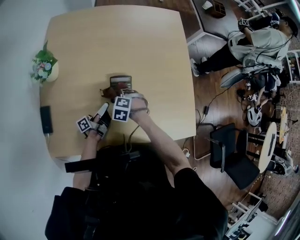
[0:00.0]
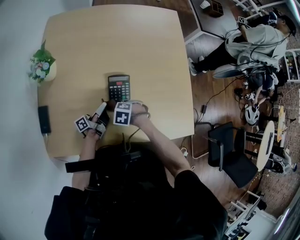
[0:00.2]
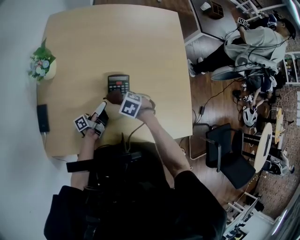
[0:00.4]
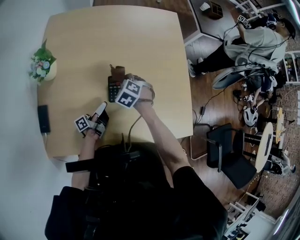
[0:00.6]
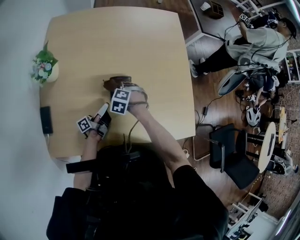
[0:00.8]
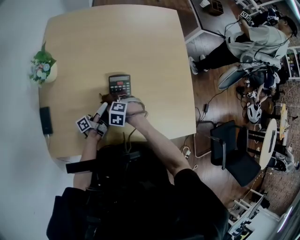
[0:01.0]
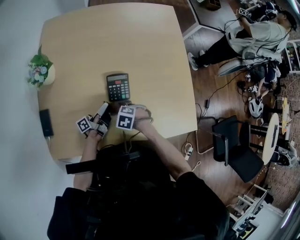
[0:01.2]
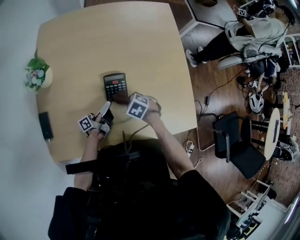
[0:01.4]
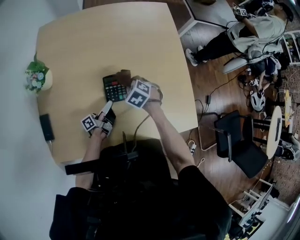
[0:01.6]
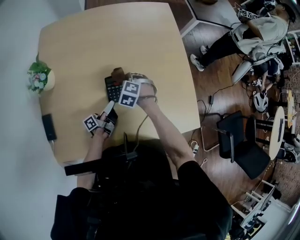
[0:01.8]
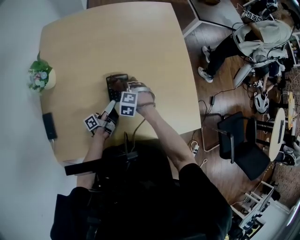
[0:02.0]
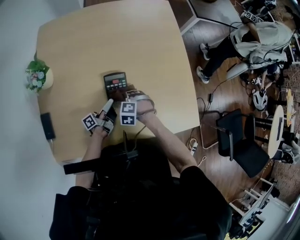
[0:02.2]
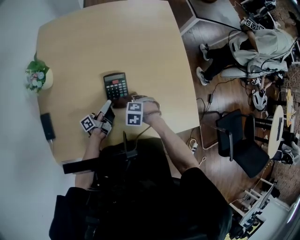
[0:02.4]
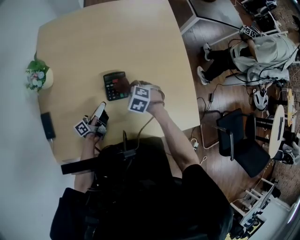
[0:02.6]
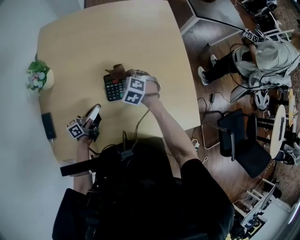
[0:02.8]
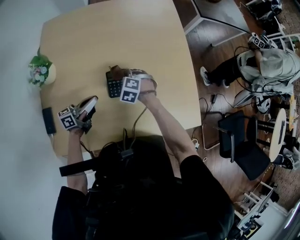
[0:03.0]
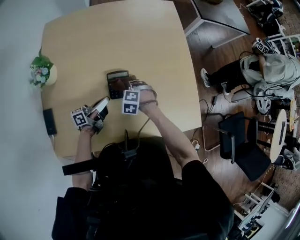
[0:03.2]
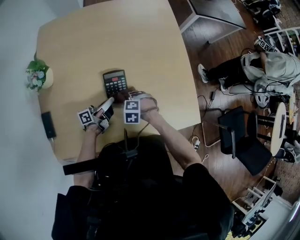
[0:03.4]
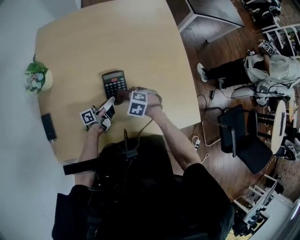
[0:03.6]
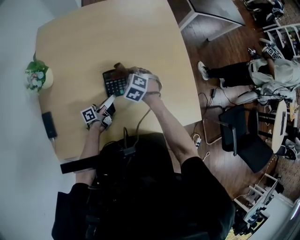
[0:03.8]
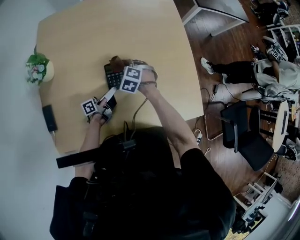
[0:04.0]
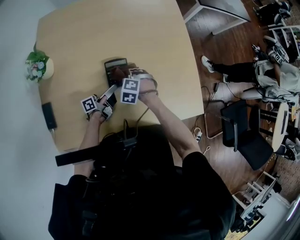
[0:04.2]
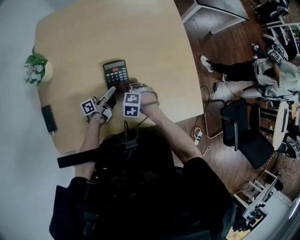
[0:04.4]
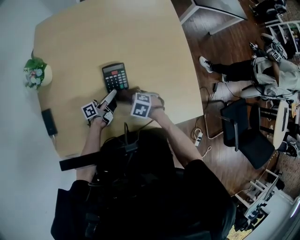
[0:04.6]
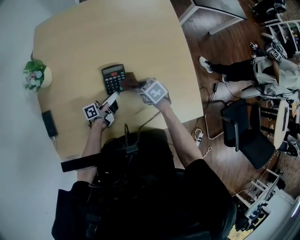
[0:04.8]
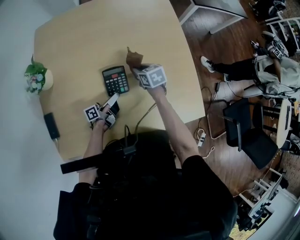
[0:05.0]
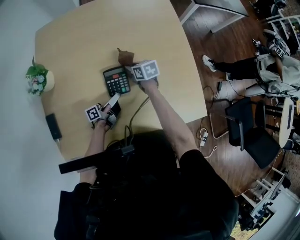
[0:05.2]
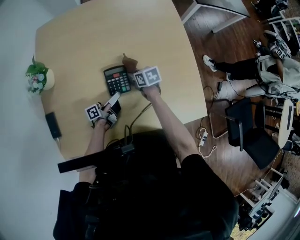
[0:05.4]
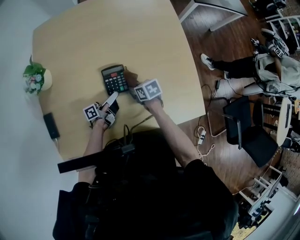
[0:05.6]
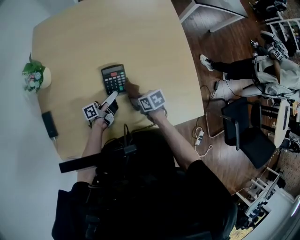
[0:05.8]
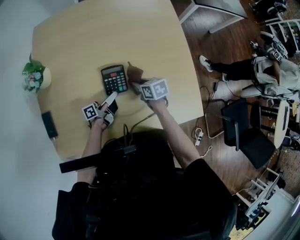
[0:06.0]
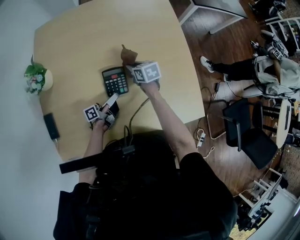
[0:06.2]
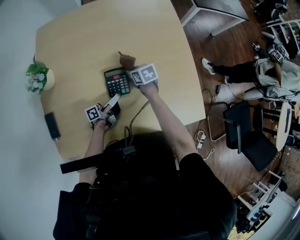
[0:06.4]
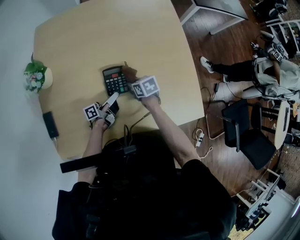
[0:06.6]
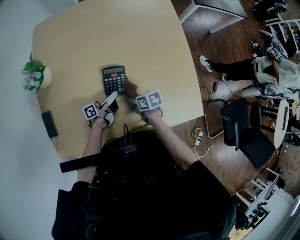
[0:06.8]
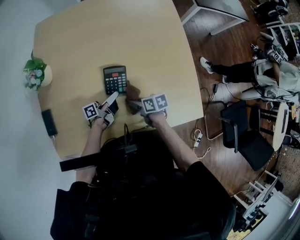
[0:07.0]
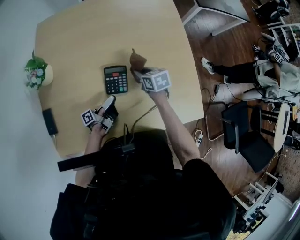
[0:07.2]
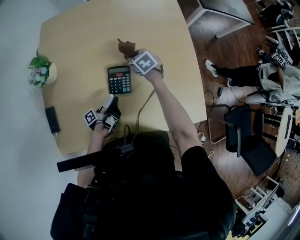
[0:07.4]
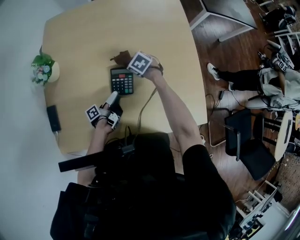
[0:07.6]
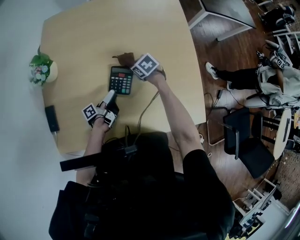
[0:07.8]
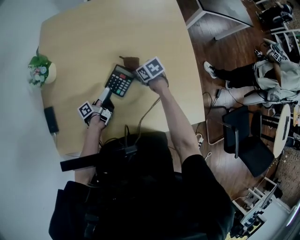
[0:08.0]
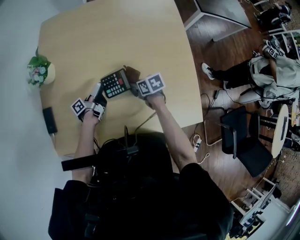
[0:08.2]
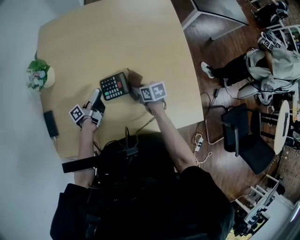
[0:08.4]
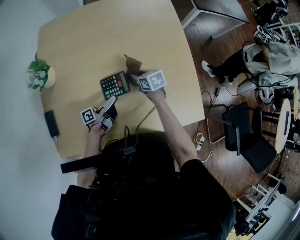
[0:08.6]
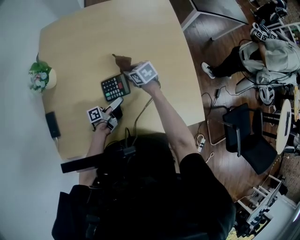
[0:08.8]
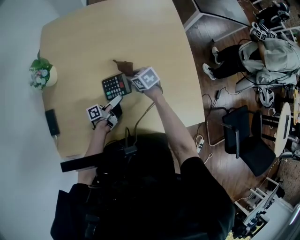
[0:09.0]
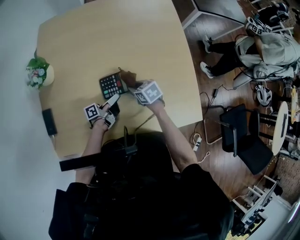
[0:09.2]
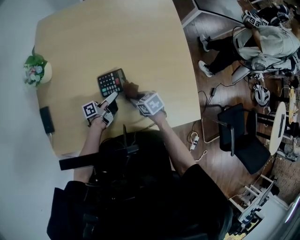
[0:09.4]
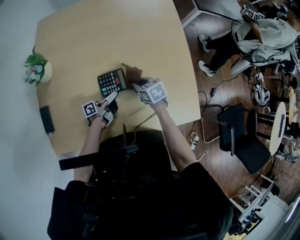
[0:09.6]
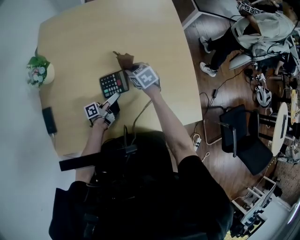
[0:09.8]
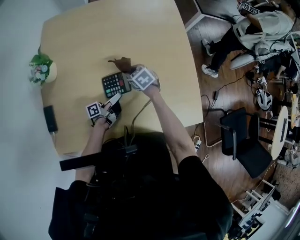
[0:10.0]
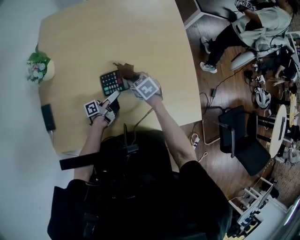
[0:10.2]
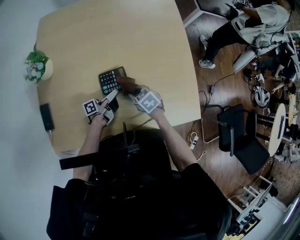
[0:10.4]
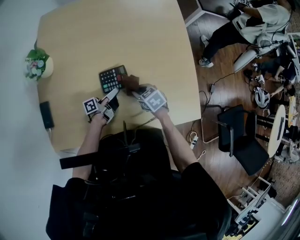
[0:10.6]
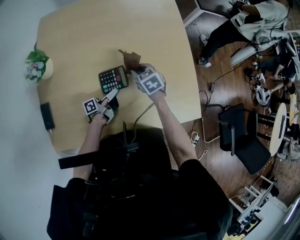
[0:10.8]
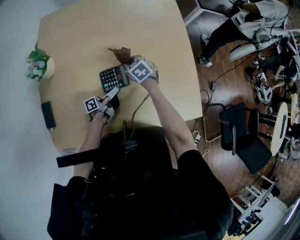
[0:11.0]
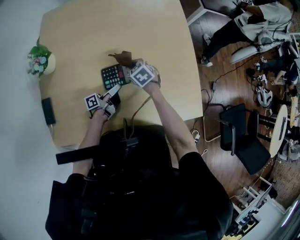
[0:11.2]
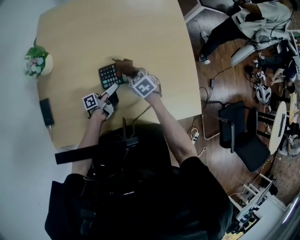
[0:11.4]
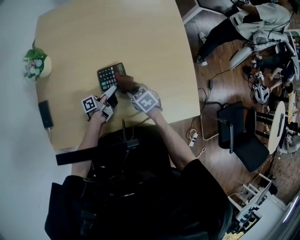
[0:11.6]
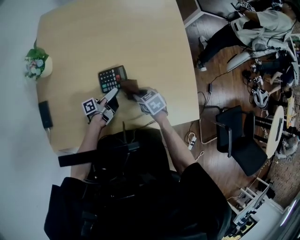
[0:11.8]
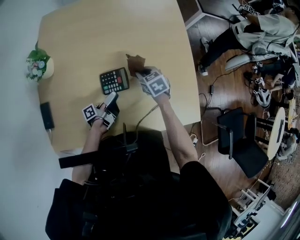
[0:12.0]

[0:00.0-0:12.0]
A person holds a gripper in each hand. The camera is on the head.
0:00.0 to 0:01.6: The right gripper moves up and down over approximately 10 cm, changing direction 2 times, and rotates roughly 30 degrees.
0:01.6 to 0:03.0: The right gripper rotates approximately 20 degrees.
0:03.0 to 0:04.4: The right gripper swings up and down, some 5 cm each way, with 2 reversals.
0:04.4 to 0:06.0: The right gripper rolls clockwise, seen from behind, by about 70 degrees.
0:06.0 to 0:07.6: The right gripper shifts by some 15 cm, and rotates some 40 degrees.
0:07.6 to 0:09.0: The right gripper turns by some 20 degrees.
0:09.0 to 0:10.4: The right gripper shifts by roughly 10 cm.
0:10.4 to 0:12.0: The right gripper swings up and down, roughly 5 cm each way, with 2 reversals.

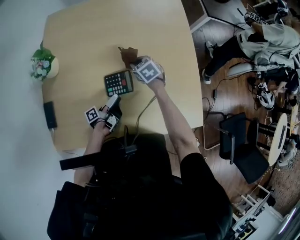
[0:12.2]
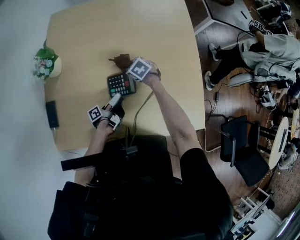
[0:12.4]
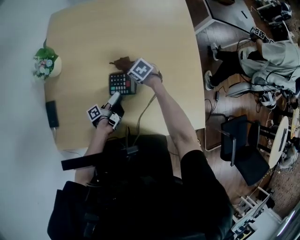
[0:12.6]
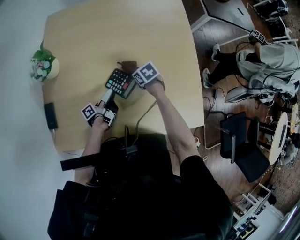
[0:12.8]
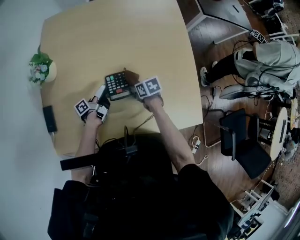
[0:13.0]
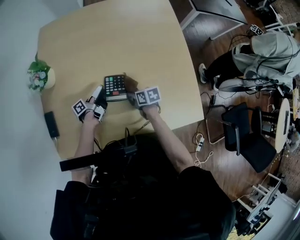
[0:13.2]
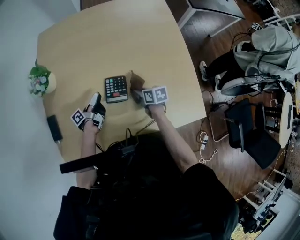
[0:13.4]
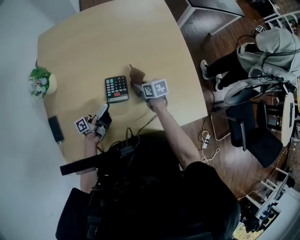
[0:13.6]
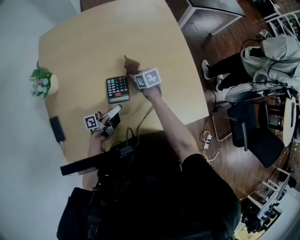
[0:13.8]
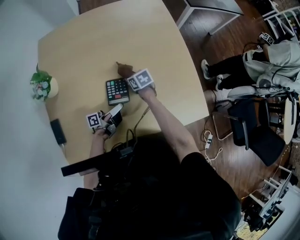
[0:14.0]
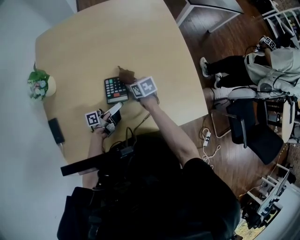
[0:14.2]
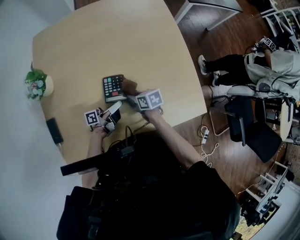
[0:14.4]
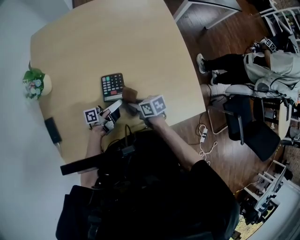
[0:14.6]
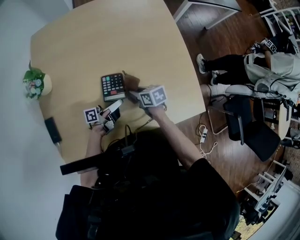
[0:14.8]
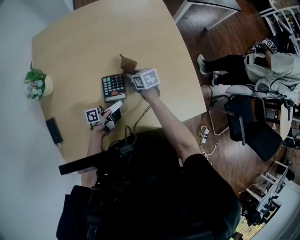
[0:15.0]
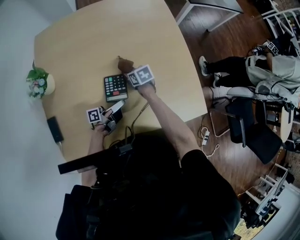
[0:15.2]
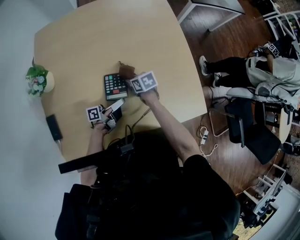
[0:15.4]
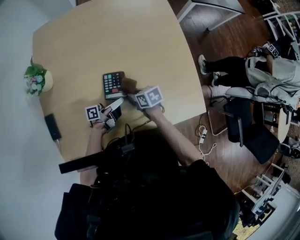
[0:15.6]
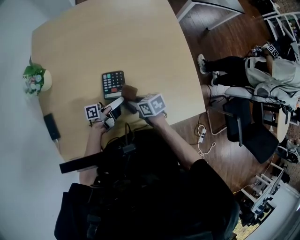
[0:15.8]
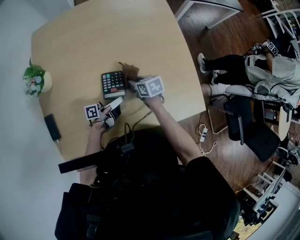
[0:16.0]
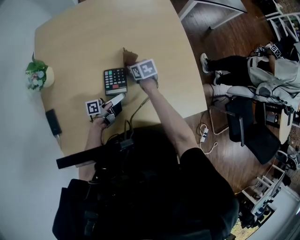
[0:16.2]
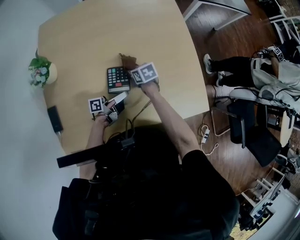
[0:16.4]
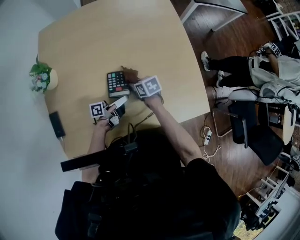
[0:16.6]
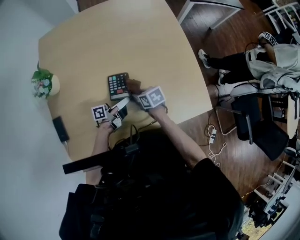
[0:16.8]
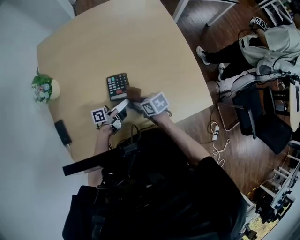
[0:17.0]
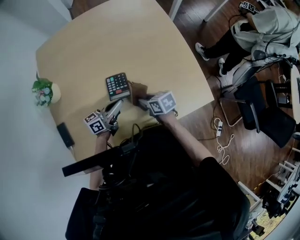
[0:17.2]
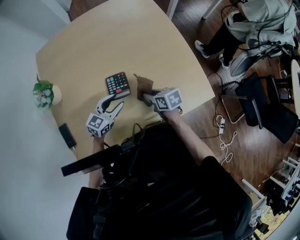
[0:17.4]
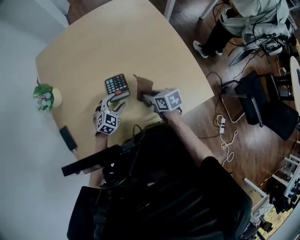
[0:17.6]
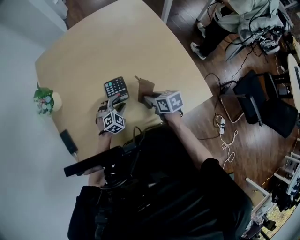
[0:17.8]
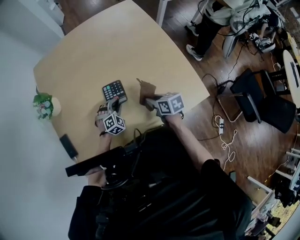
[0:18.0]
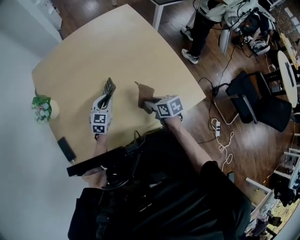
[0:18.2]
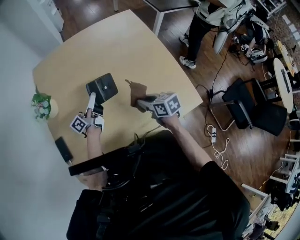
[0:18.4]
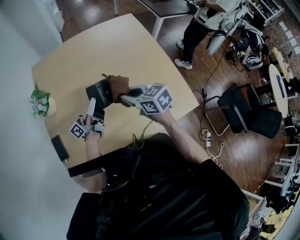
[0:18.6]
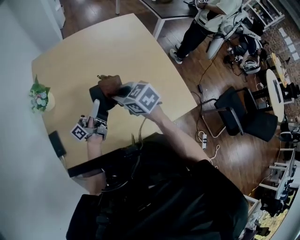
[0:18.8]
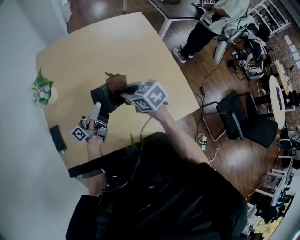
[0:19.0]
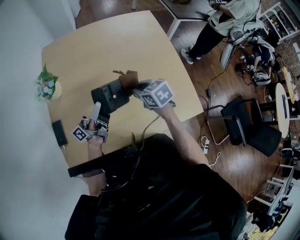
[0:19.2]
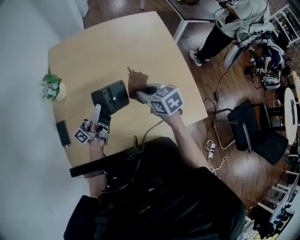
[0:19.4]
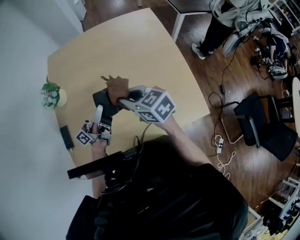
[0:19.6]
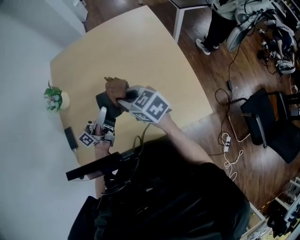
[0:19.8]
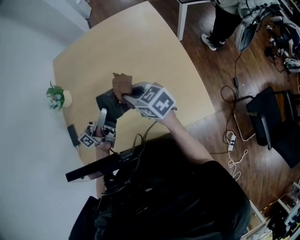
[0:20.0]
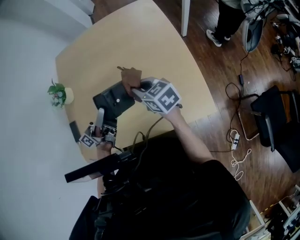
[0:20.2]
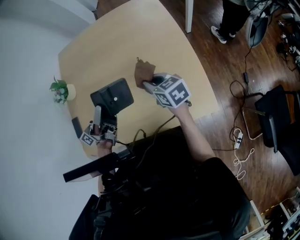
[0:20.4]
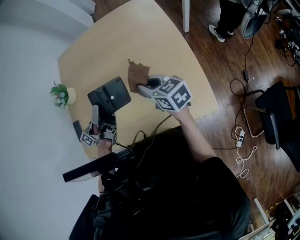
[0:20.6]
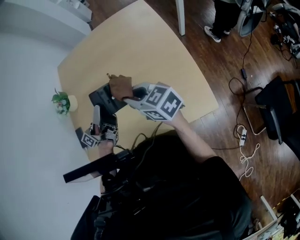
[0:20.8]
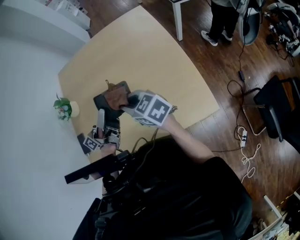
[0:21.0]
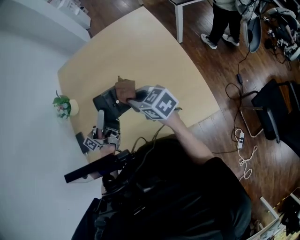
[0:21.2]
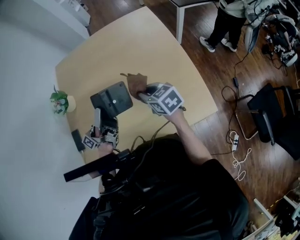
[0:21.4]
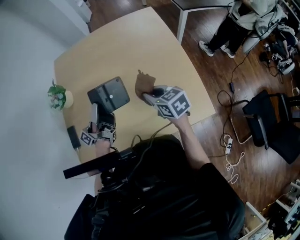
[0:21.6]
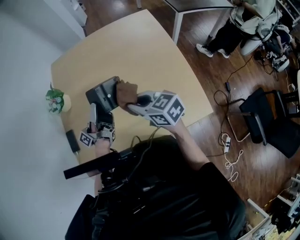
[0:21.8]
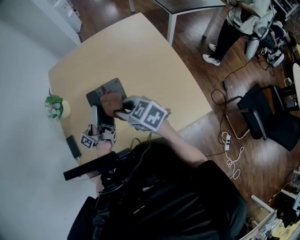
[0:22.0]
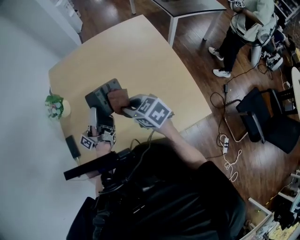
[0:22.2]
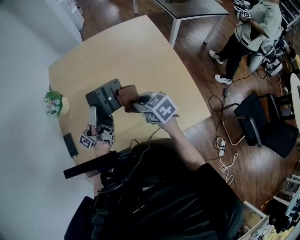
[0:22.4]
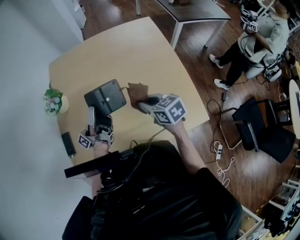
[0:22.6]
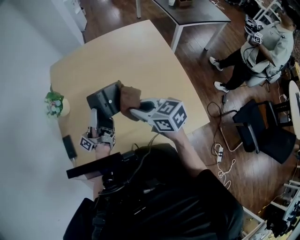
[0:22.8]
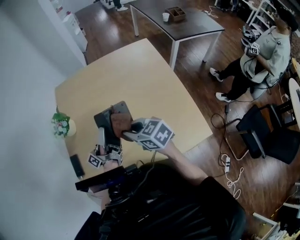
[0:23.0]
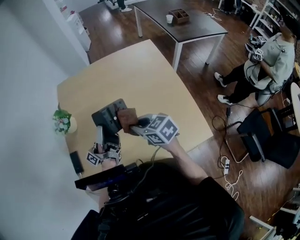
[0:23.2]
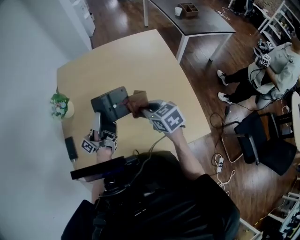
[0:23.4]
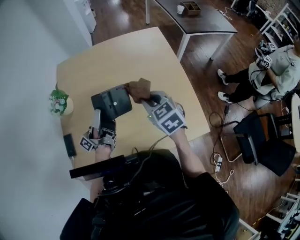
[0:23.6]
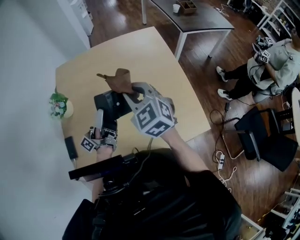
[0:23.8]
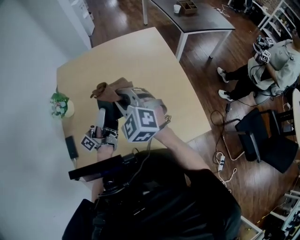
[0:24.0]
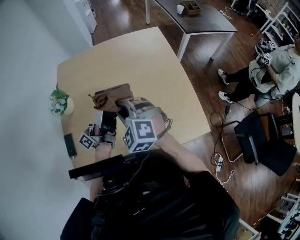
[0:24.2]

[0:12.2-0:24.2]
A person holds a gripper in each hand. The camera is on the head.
0:12.2 to 0:13.8: The right gripper rotates roughly 30 degrees.
0:16.6 to 0:18.2: The right gripper moves some 15 cm, and rotates approximately 20 degrees.
0:18.2 to 0:19.8: The right gripper swings up and down, approximately 20 cm each way, with 2 reversals, and changes its angle by some 40 degrees.
0:19.8 to 0:21.2: The right gripper reaches approximately 10 cm downward, then returns.
0:21.2 to 0:22.6: The right gripper goes up and down, approximately 5 cm each way, reversing 2 times.
0:22.6 to 0:24.2: The right gripper swings up and down, about 15 cm each way, with 3 reversals, and twists about 60 degrees counterclockwise, seen from behind.
